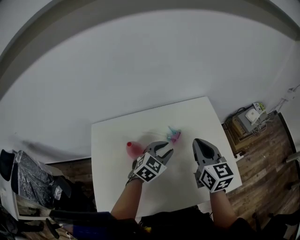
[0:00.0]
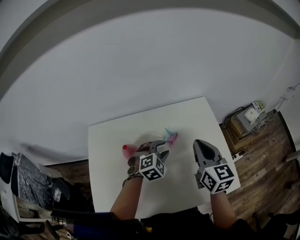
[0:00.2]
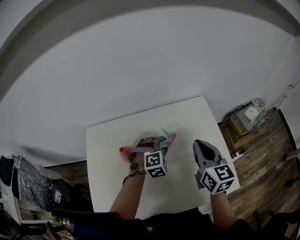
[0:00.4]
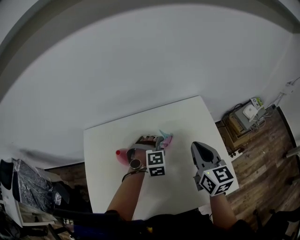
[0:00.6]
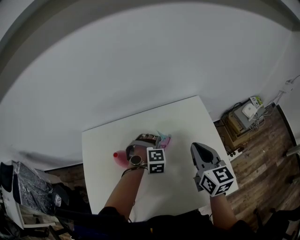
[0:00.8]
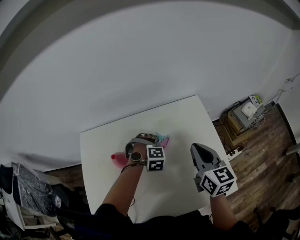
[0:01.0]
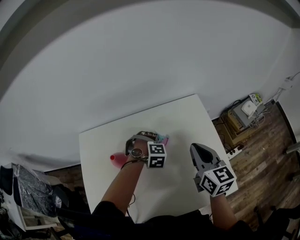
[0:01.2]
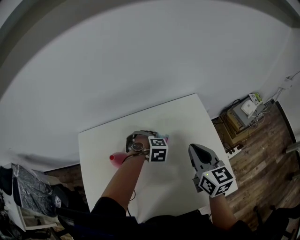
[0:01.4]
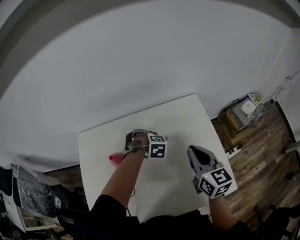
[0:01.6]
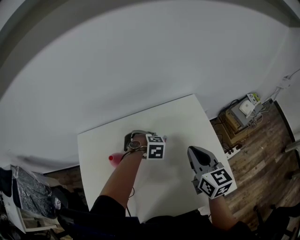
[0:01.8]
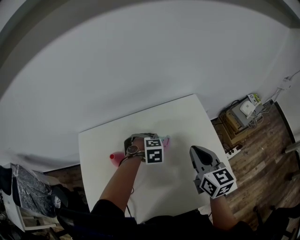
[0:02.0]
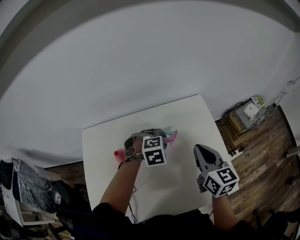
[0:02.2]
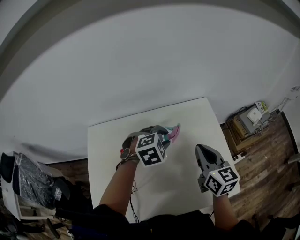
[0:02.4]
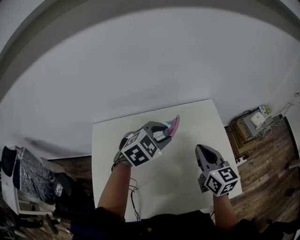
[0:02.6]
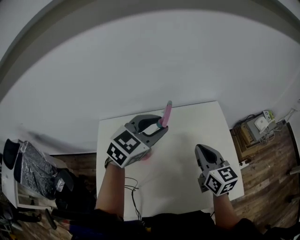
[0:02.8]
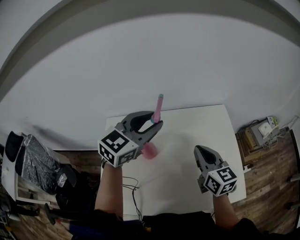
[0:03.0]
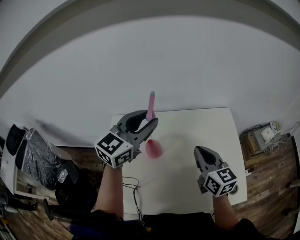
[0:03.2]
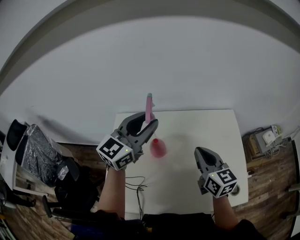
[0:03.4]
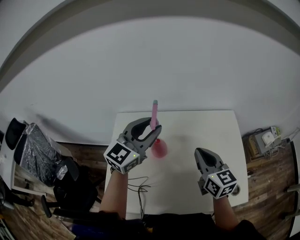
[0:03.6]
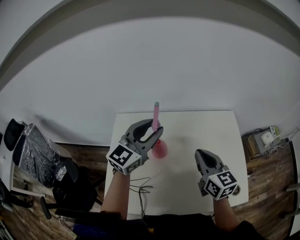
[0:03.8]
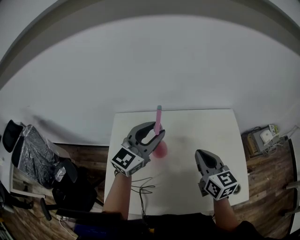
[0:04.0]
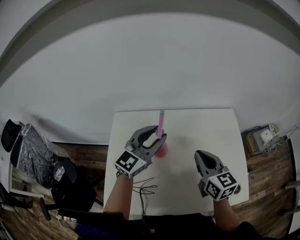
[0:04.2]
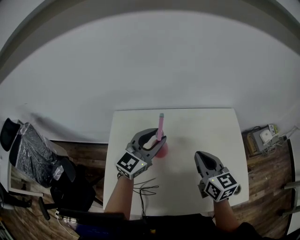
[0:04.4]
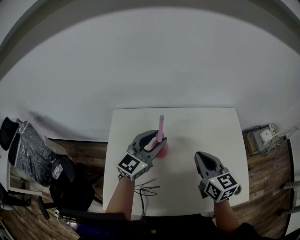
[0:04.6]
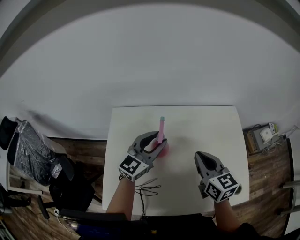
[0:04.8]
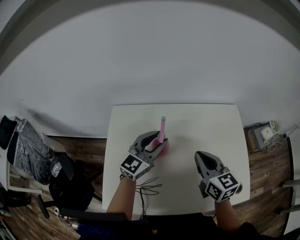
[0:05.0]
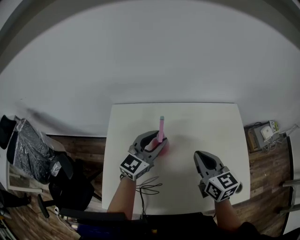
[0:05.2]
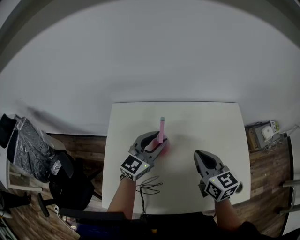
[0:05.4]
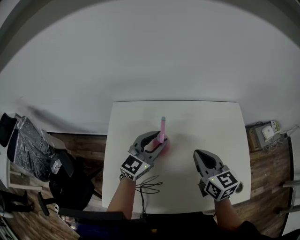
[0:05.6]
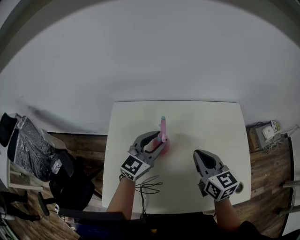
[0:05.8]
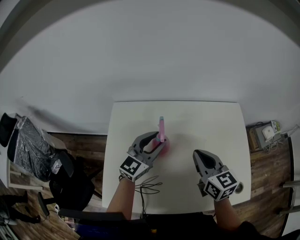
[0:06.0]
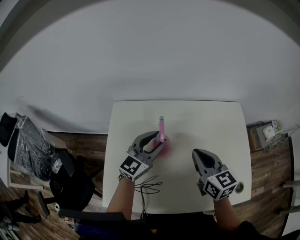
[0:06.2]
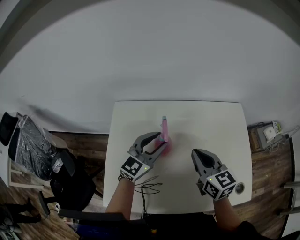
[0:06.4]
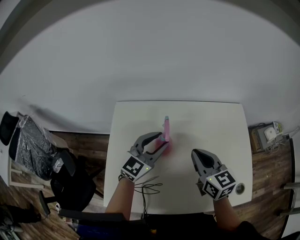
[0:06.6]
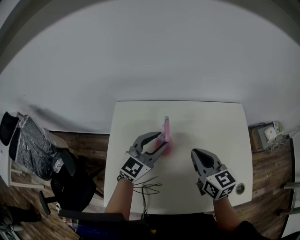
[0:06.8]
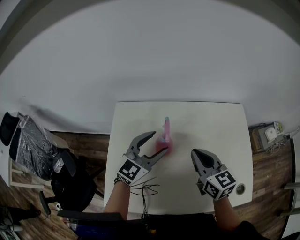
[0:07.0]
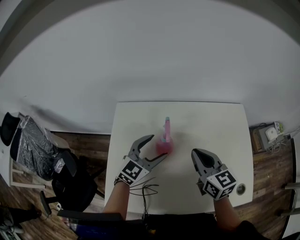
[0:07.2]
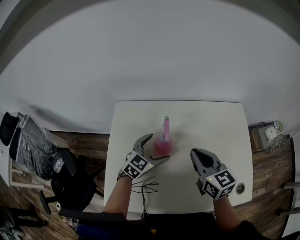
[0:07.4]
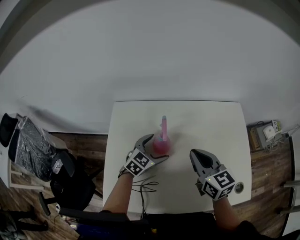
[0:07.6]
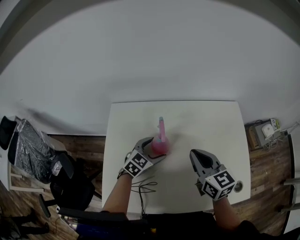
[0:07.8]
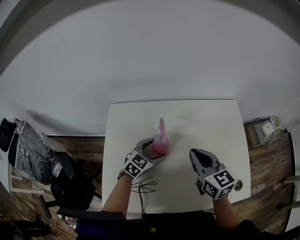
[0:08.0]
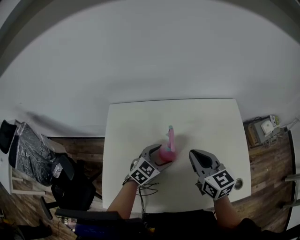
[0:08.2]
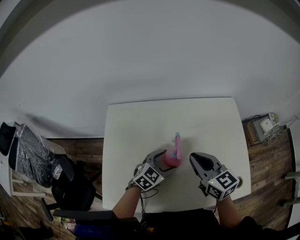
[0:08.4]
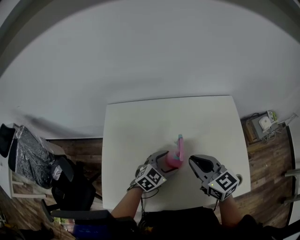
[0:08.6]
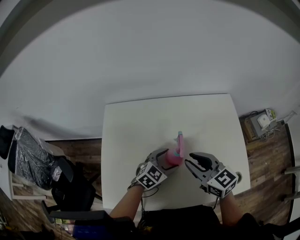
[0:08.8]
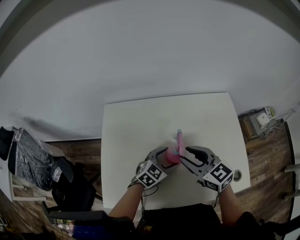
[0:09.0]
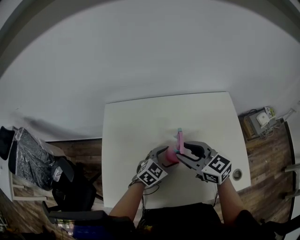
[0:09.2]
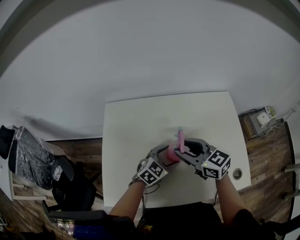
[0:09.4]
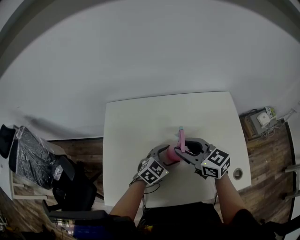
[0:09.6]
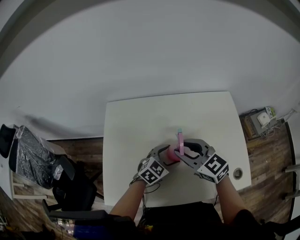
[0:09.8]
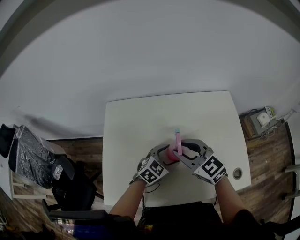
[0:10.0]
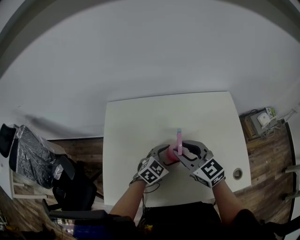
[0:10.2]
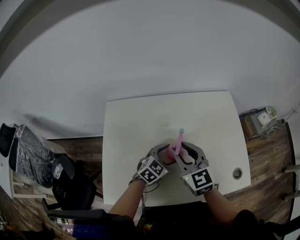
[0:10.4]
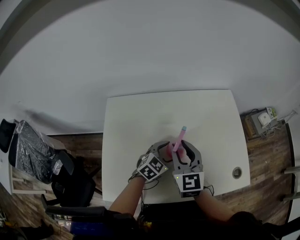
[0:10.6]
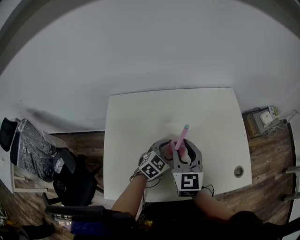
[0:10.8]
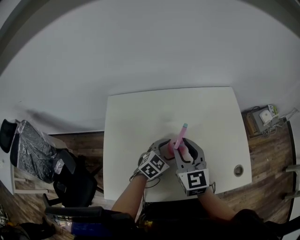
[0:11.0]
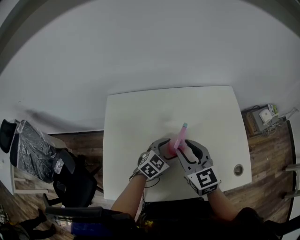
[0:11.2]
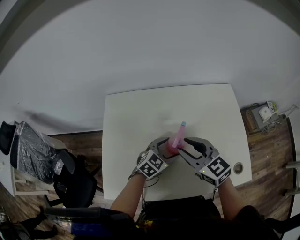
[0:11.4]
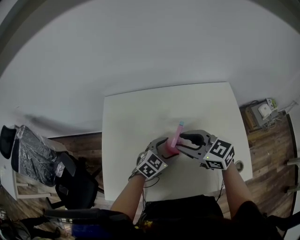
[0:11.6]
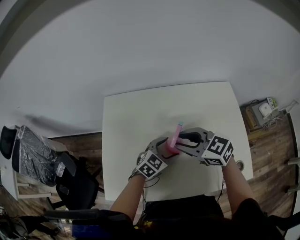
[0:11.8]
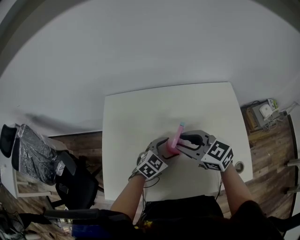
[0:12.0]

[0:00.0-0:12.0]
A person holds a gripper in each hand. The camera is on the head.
0:00.0 to 0:01.6: The right gripper changes place by some 5 cm, while the left gripper shifts some 10 cm downward, and angles its fingers downward, by approximately 50 degrees.
0:01.6 to 0:03.0: The left gripper shifts approximately 35 cm upward, and angles its fingers upward, by about 70 degrees, while the right gripper ends up approximately 10 cm from where it was.
0:03.0 to 0:04.4: The left gripper is displaced downward and to the left by roughly 10 cm. Meanwhile the right gripper shifts roughly 5 cm to the left.
0:04.4 to 0:06.0: The left gripper shifts about 5 cm downward.
0:06.0 to 0:07.6: The left gripper is displaced downward by approximately 15 cm, rotates some 30 degrees, and opens.
0:07.6 to 0:09.0: The right gripper opens up; the left gripper is displaced to the right and backward by approximately 10 cm.
0:09.0 to 0:10.4: The grippers make only small movements.
0:10.4 to 0:12.0: The right gripper turns by about 30 degrees.

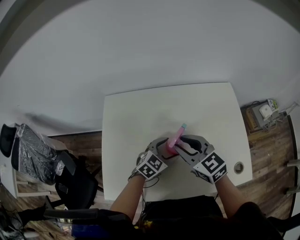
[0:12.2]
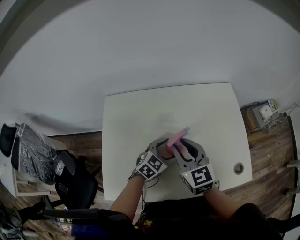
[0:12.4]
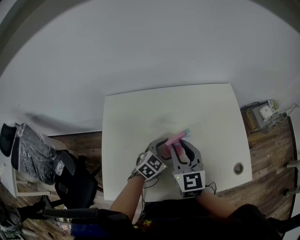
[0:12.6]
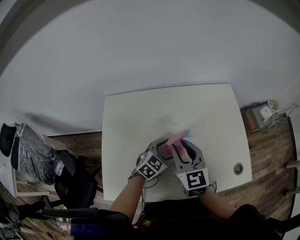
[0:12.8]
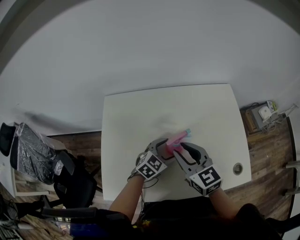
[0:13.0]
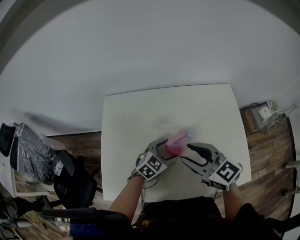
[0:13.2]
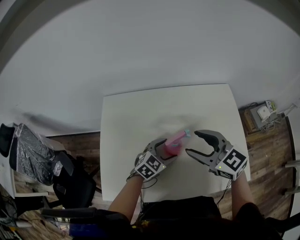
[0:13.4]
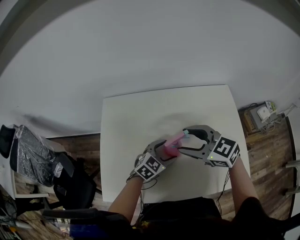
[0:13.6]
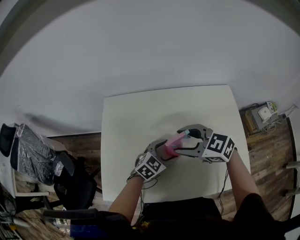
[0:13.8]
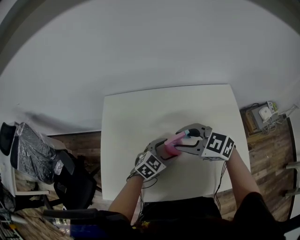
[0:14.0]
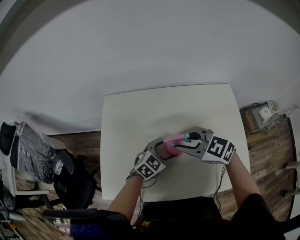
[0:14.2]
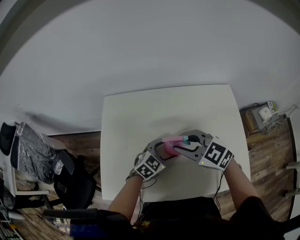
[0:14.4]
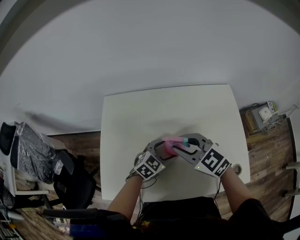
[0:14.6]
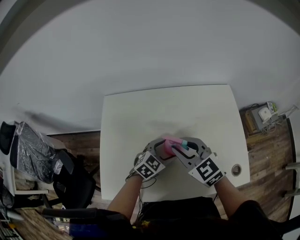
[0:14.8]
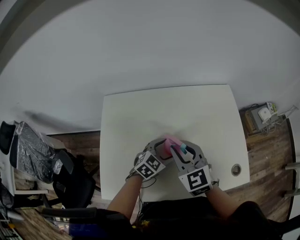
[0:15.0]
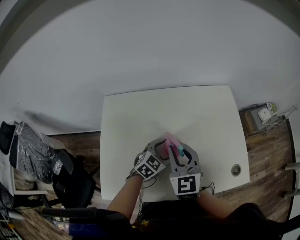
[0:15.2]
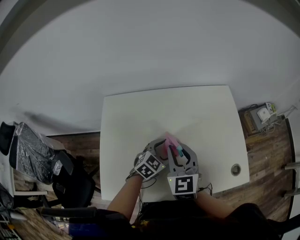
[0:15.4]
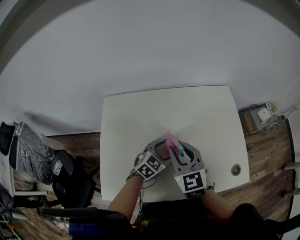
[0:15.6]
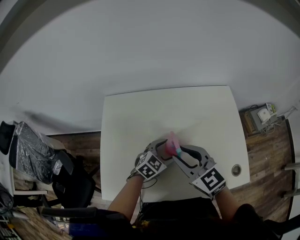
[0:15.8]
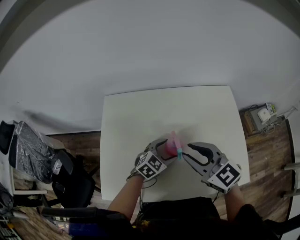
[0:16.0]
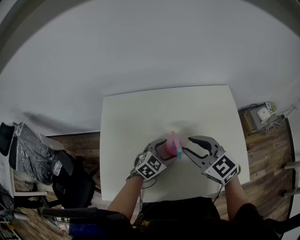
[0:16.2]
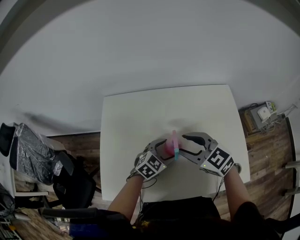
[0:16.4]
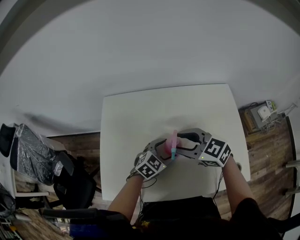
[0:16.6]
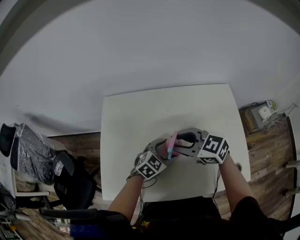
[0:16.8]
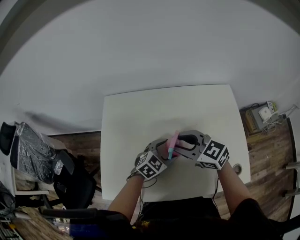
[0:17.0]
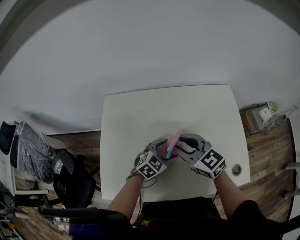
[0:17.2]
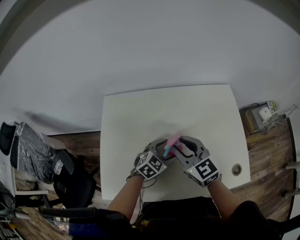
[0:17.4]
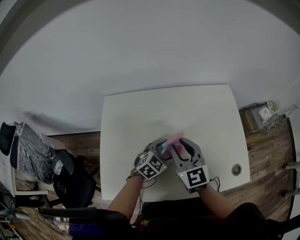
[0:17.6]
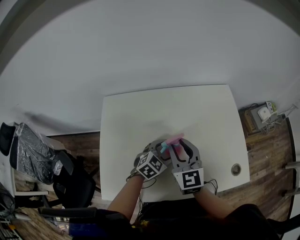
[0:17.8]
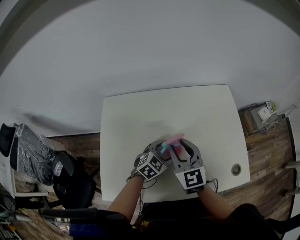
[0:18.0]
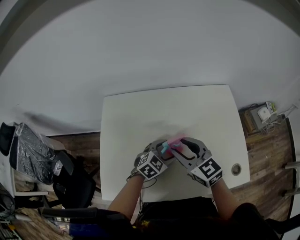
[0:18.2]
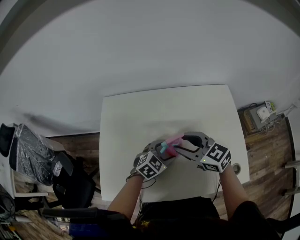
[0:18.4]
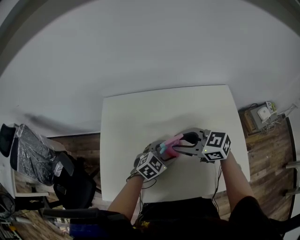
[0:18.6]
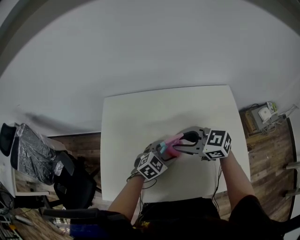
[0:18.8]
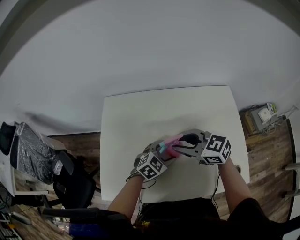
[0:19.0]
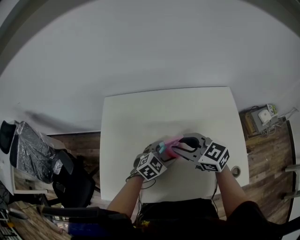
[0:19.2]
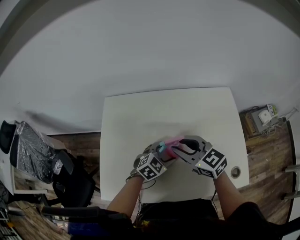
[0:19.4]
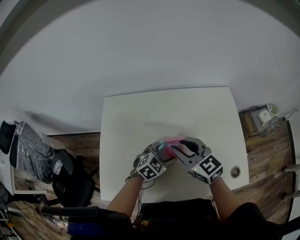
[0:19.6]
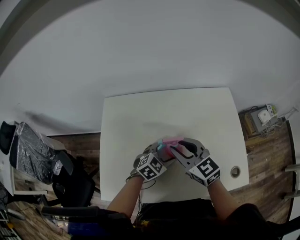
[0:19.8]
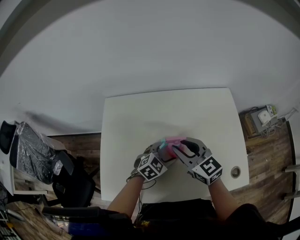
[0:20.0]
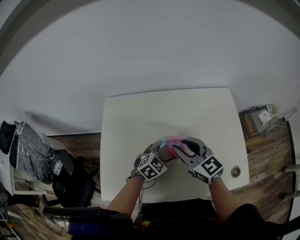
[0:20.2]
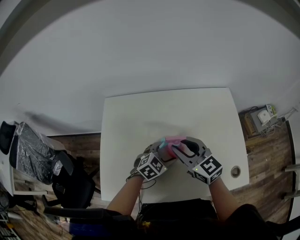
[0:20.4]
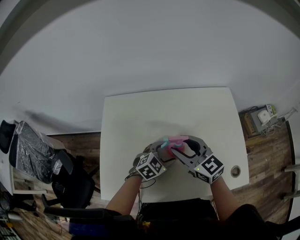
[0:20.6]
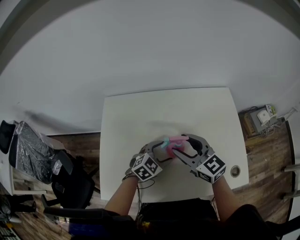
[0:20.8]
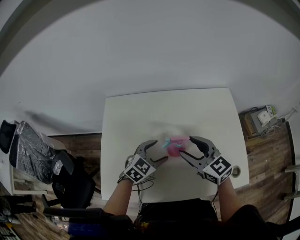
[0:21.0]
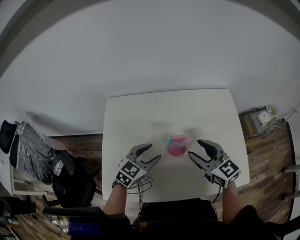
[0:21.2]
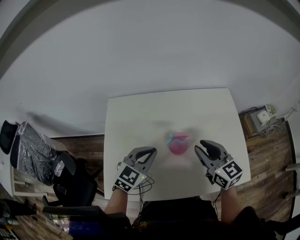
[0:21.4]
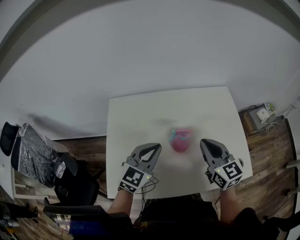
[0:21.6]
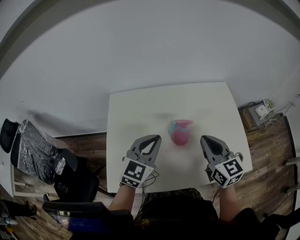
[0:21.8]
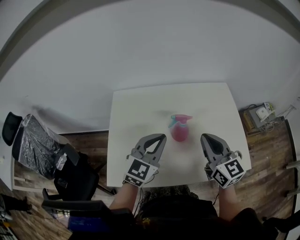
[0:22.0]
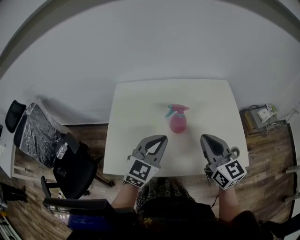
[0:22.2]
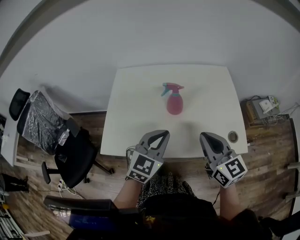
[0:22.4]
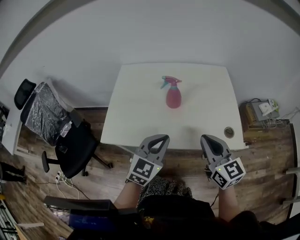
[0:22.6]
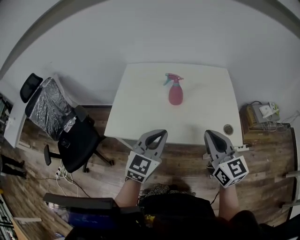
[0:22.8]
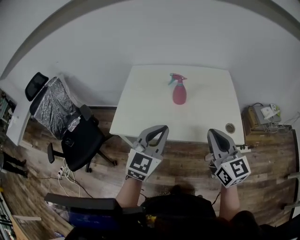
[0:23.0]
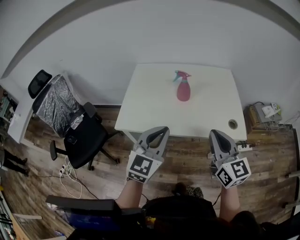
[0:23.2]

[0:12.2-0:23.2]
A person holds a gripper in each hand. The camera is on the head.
0:12.2 to 0:13.8: The right gripper changes its angle by about 30 degrees, and opens up.
0:13.8 to 0:15.4: The right gripper turns by approximately 50 degrees, and closes up.
0:15.4 to 0:17.0: The right gripper turns by about 50 degrees.
0:18.4 to 0:20.0: There are only small adjustments of the grippers.
0:20.0 to 0:21.6: The right gripper moves to the right, about 10 cm, and closes its fingers. Meanwhile the left gripper heads upward and to the left, covering roughly 20 cm, rotates about 30 degrees, and closes its fingers.
0:21.6 to 0:23.2: The two grippers go about 30 cm backward.

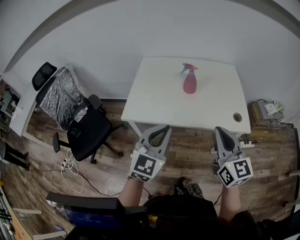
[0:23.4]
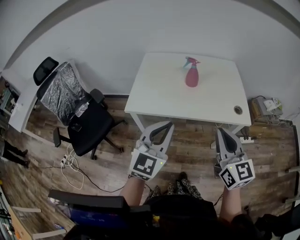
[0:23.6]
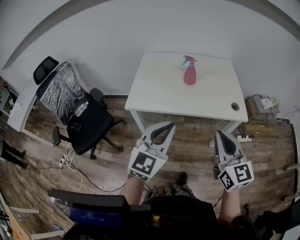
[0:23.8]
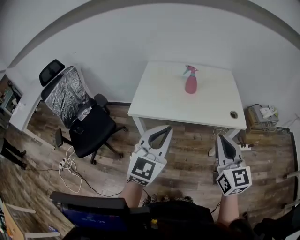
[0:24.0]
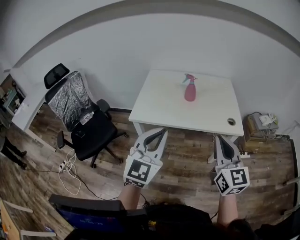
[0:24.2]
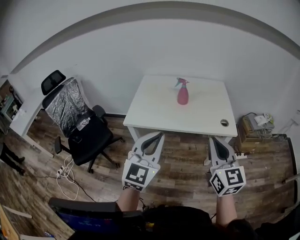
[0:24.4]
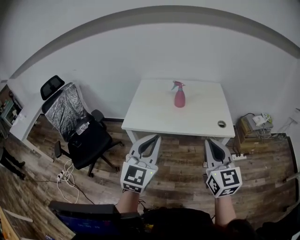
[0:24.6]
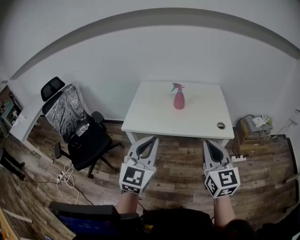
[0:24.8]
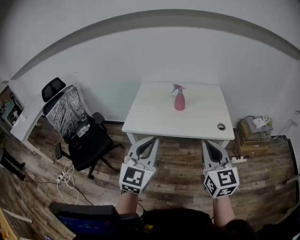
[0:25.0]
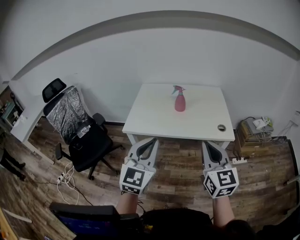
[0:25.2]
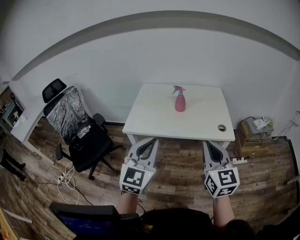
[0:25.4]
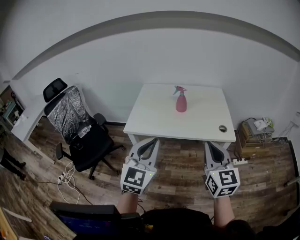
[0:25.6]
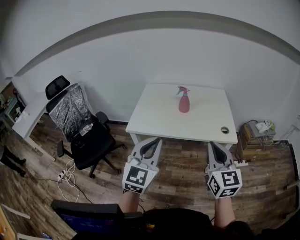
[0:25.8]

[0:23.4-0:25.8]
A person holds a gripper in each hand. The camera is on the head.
0:23.4 to 0:24.6: The grippers both shift backward and upward by approximately 15 cm.
0:24.6 to 0:25.8: The two grippers keep their place.
